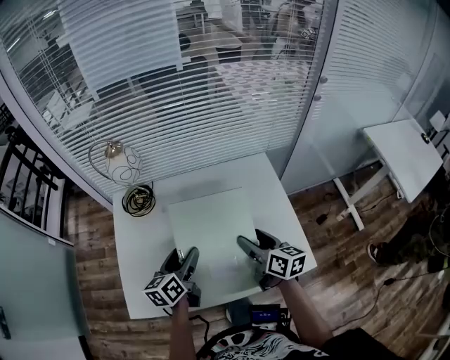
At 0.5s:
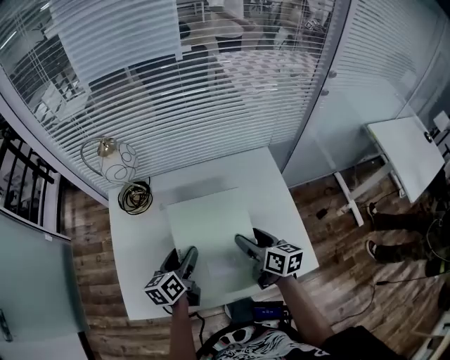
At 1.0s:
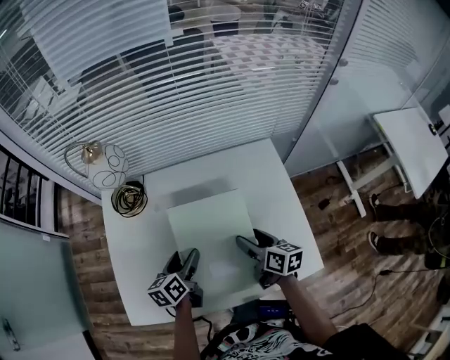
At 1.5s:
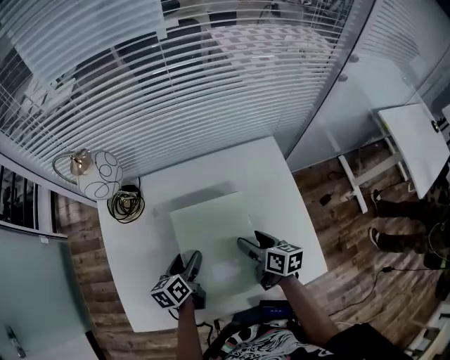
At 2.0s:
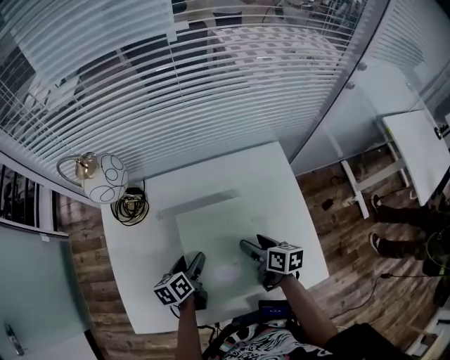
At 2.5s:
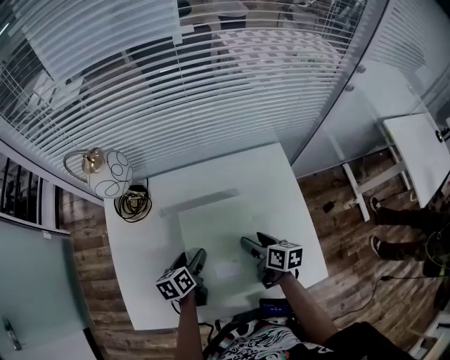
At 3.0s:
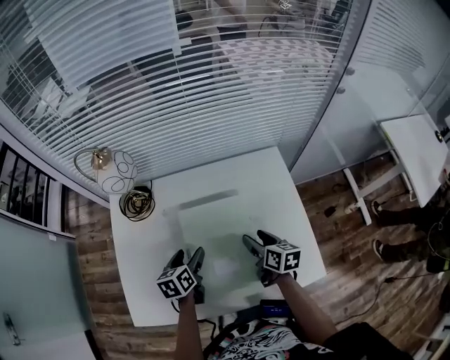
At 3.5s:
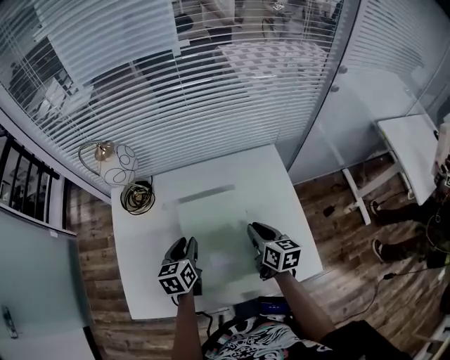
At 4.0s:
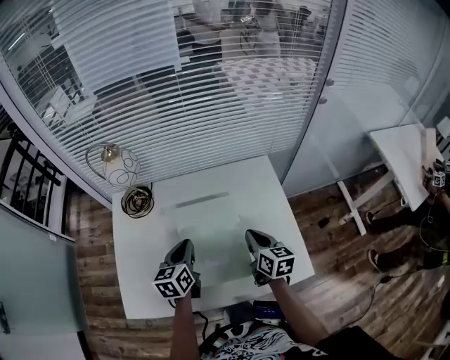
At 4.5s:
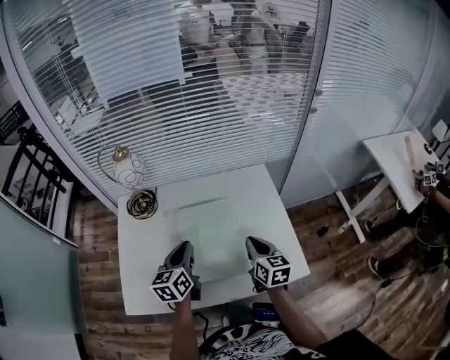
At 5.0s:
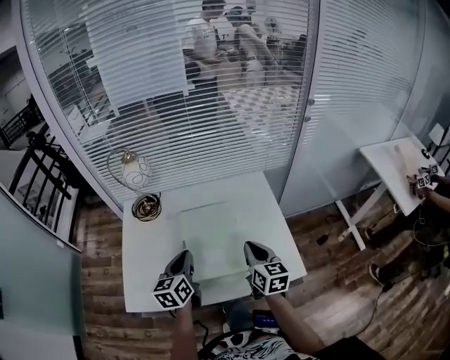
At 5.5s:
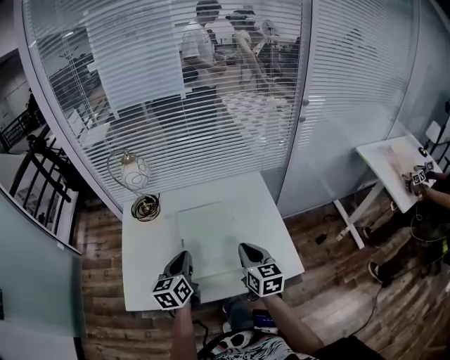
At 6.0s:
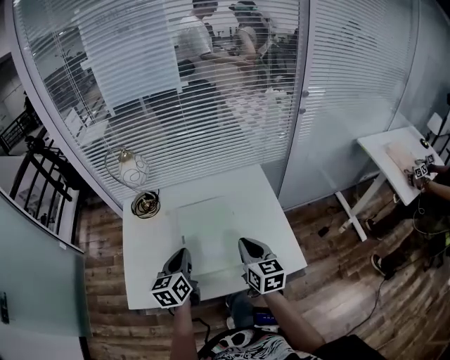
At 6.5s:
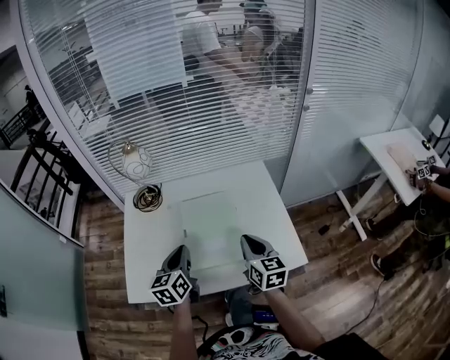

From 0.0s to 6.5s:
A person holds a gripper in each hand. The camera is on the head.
From 0.0s to 2.0s: The left gripper is displaced downward by roughly 15 cm, and turns by approximately 20 degrees. The right gripper shifts some 15 cm downward and forward, and rotates about 20 degrees.
From 2.0s to 4.5s: The left gripper goes approximately 15 cm upward, swivels approximately 30 degrees, and closes its fingers. Meanwhile the right gripper is displaced upward and backward by approximately 15 cm, turns by about 30 degrees, and closes its fingers.
From 4.5s to 6.5s: The two grippers go roughly 5 cm backward.

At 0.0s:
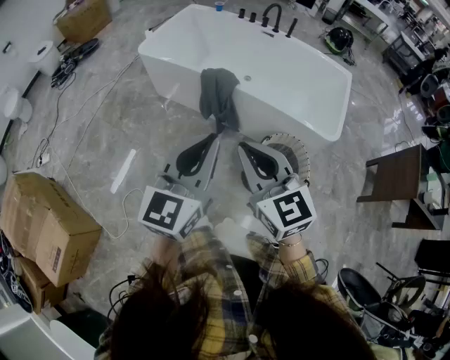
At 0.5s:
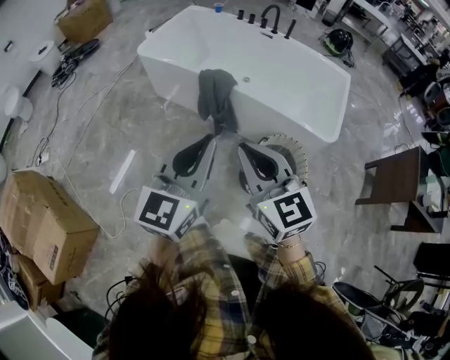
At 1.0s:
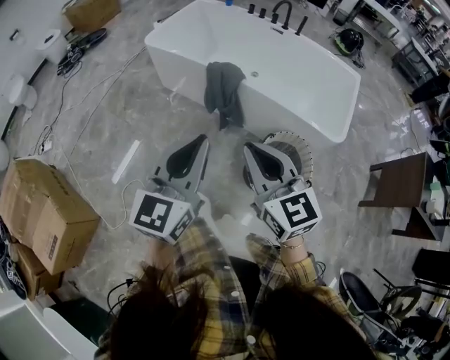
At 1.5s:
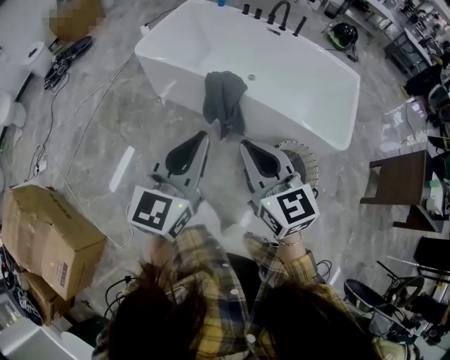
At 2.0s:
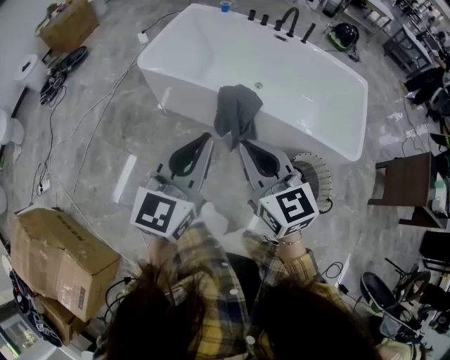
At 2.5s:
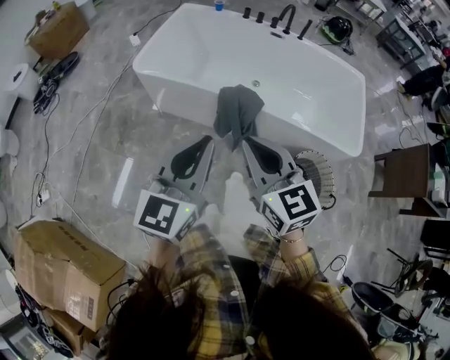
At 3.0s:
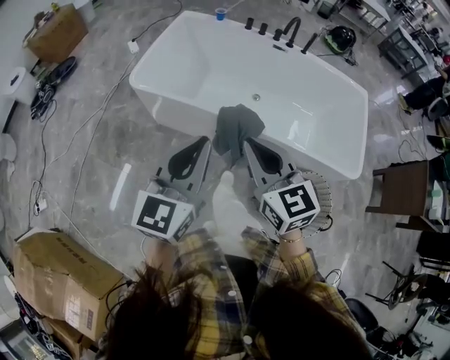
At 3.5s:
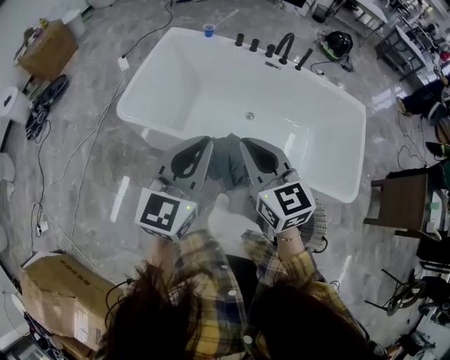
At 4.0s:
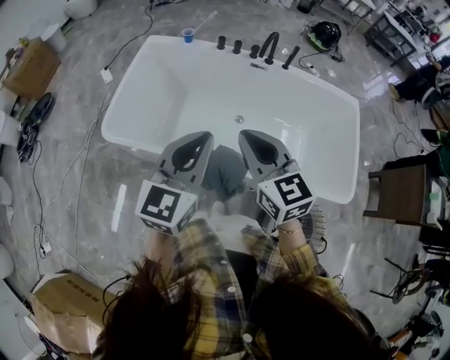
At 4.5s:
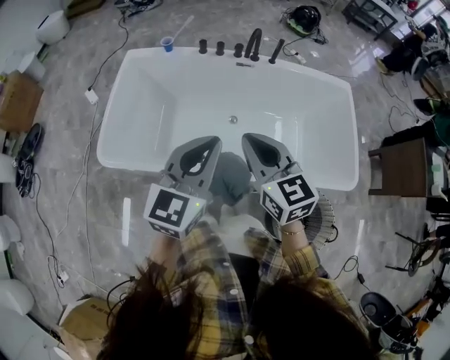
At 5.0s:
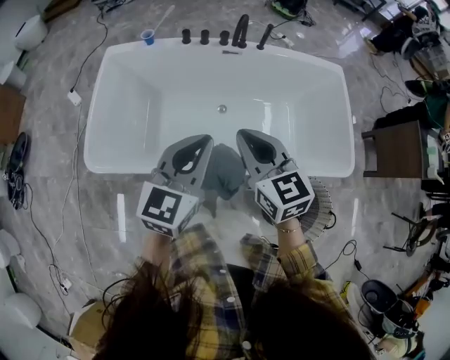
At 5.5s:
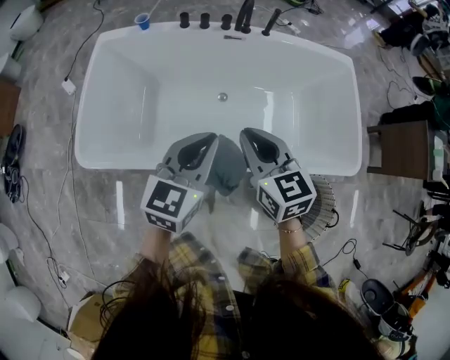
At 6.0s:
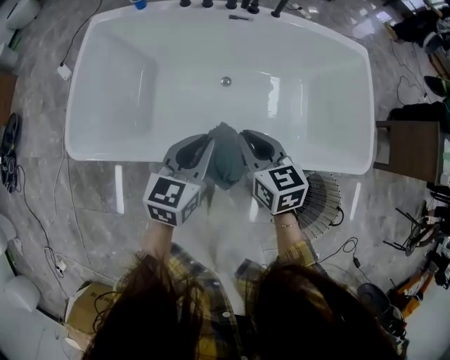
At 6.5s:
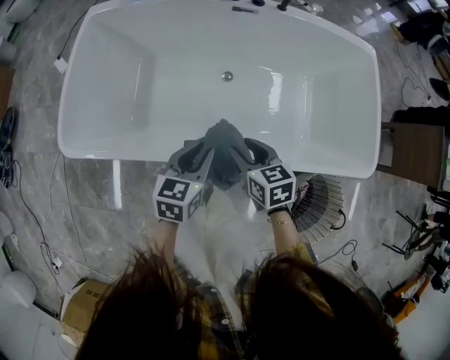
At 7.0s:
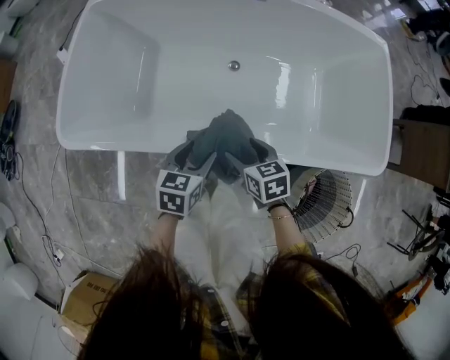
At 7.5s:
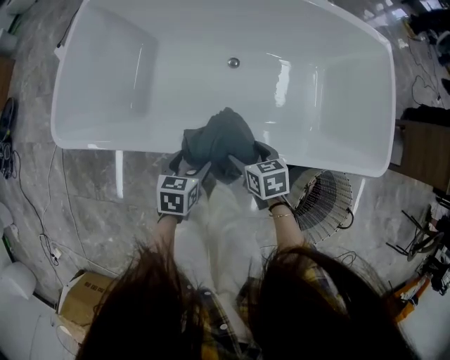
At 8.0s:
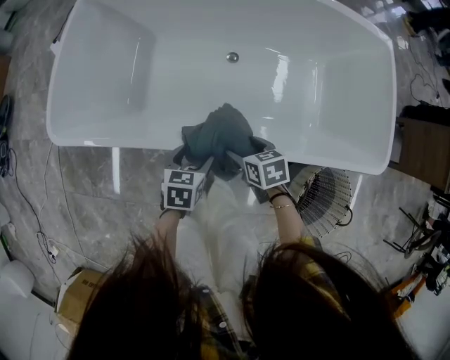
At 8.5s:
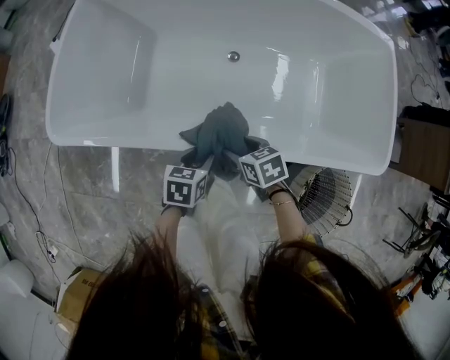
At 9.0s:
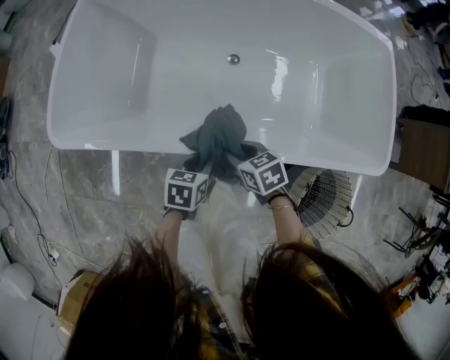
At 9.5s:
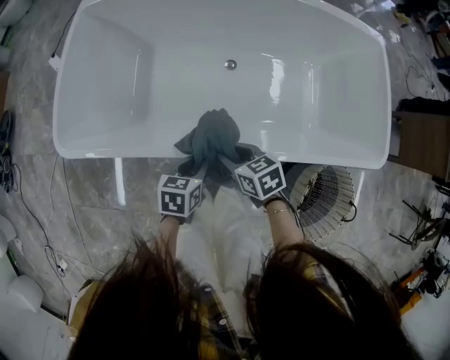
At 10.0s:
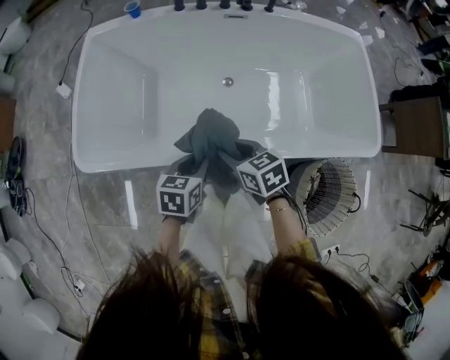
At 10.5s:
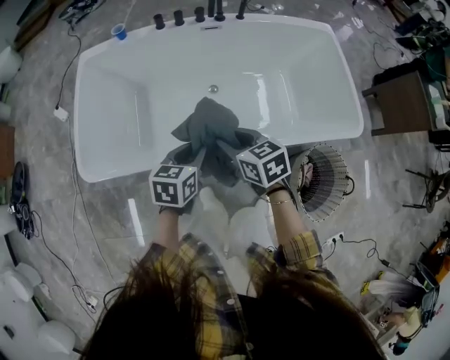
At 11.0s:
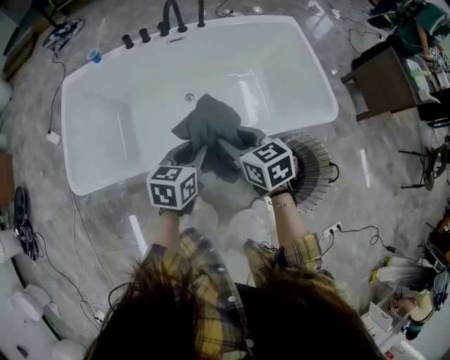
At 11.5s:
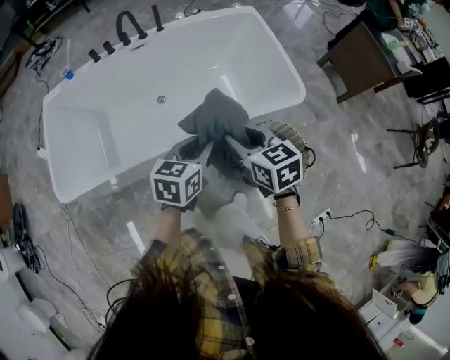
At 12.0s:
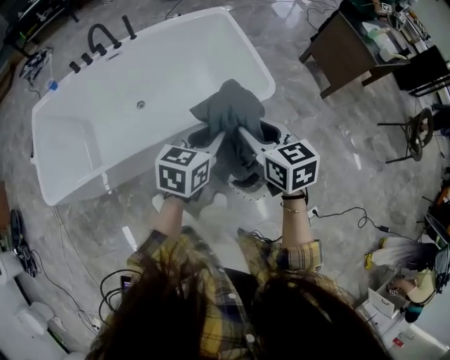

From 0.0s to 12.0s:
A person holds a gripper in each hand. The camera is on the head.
From 0.0s to 2.0s: The grippers both shift forward and to the left by about 25 cm.
From 2.0s to 4.0s: Both grippers move forward, some 40 cm.
From 4.0s to 6.0s: The right gripper shifts about 25 cm downward, and turns by some 30 degrees. Meanwhile the left gripper travels downward and forward by about 25 cm, and swivels roughly 30 degrees.
From 6.0s to 8.0s: The two grippers go approximately 25 cm downward. The left gripper rotates some 30 degrees, and opens up, while the right gripper swivels some 30 degrees, and opens.
From 8.0s to 10.0s: The right gripper goes approximately 20 cm upward and to the left, and closes up. The left gripper travels upward by about 15 cm, and closes.
From 10.0s to 12.0s: The pair of grippers is taken approximately 50 cm. The right gripper rotates roughly 40 degrees. The left gripper changes its angle by roughly 30 degrees.

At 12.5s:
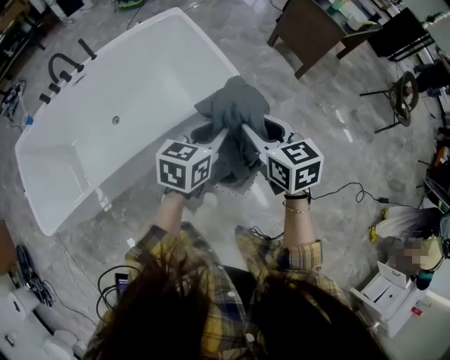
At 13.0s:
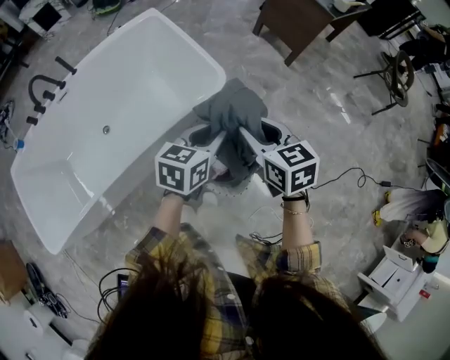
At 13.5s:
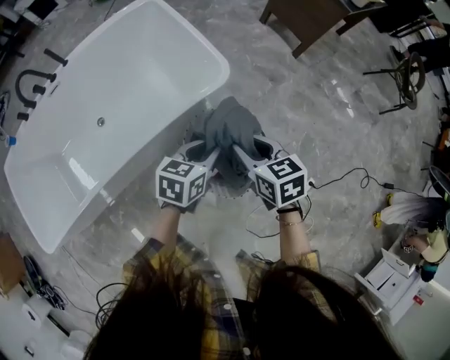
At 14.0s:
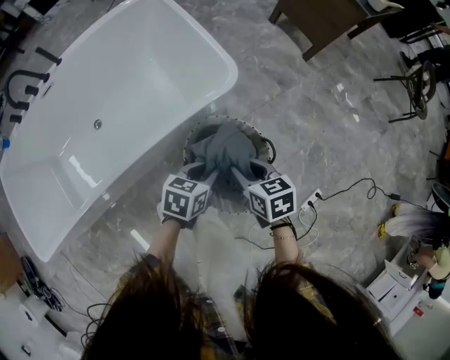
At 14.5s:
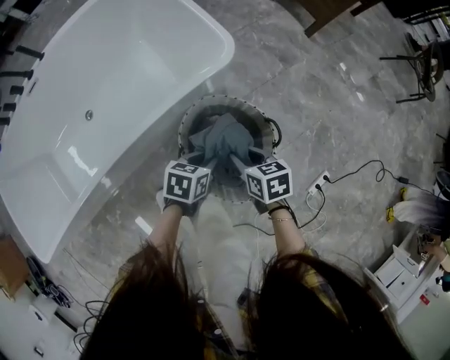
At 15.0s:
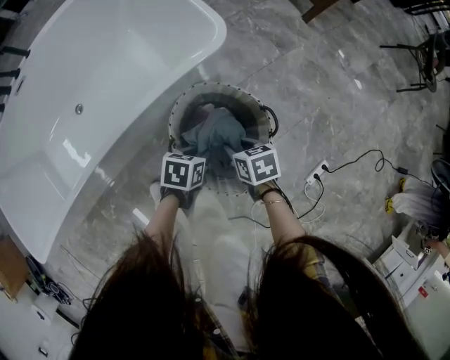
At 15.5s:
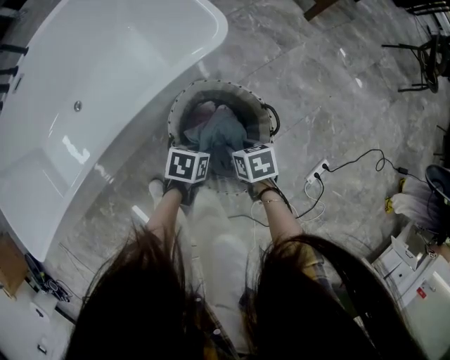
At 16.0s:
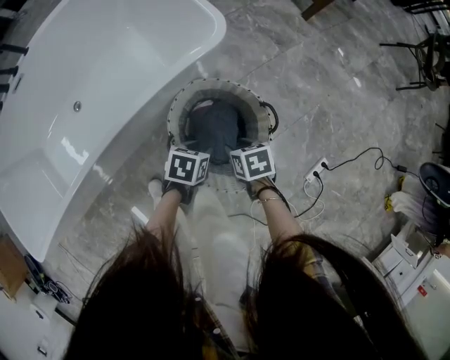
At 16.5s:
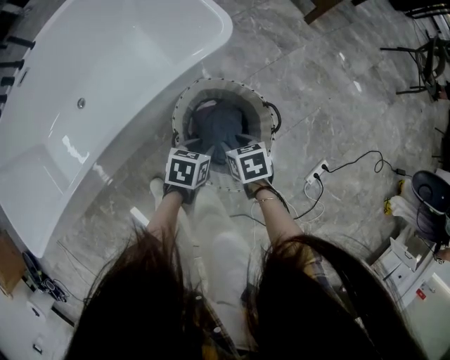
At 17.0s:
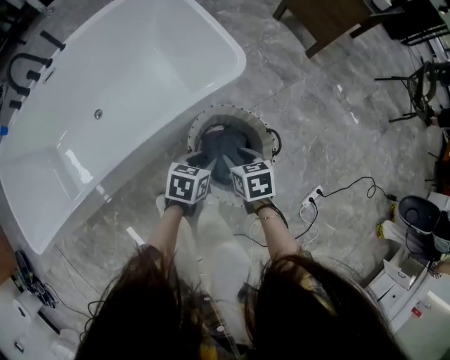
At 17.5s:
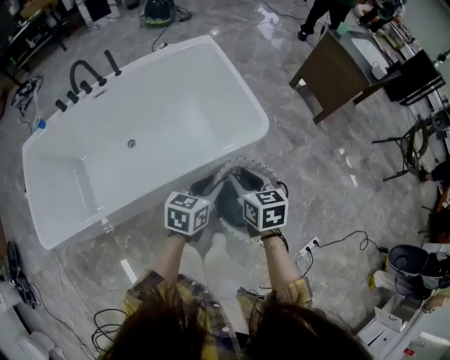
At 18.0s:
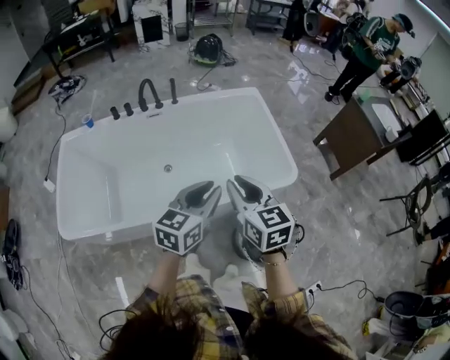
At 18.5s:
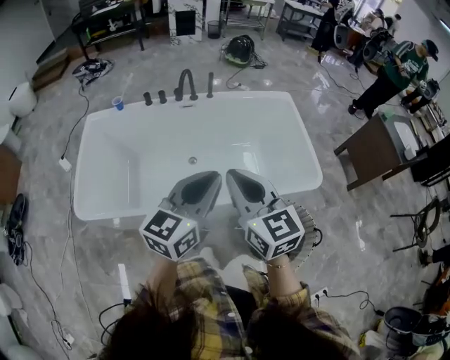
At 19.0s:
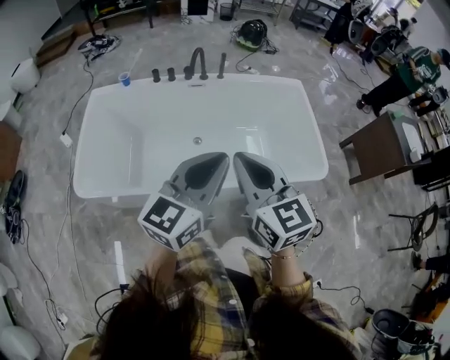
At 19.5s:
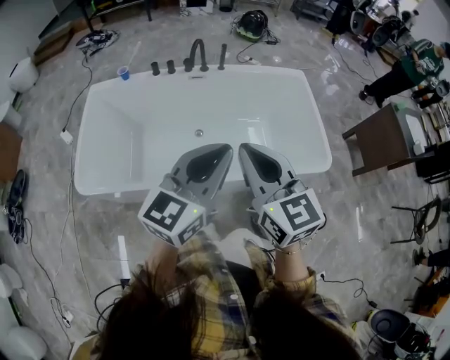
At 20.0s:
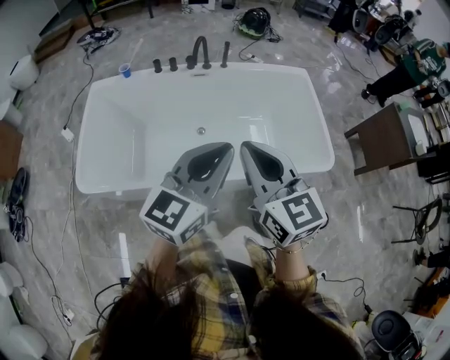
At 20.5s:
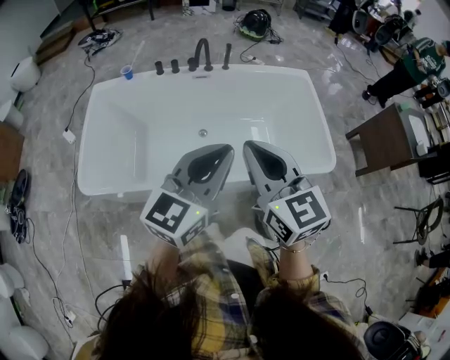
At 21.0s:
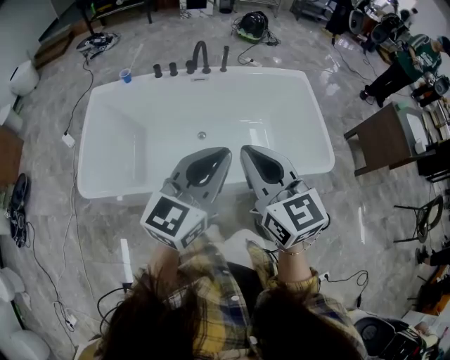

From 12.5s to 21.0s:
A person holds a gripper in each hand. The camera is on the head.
From 12.5s to 14.5s: The grippers both shift downward by about 35 cm. The left gripper swivels about 30 degrees, while the right gripper rotates some 30 degrees.
From 14.5s to 16.5s: The right gripper heads downward, covering some 5 cm.
From 16.5s to 19.0s: Both grippers are carried about 40 cm. Both grippers move upward, roughly 60 cm. The left gripper tilts its fingers about 60 degrees upward. The right gripper tilts its fingers some 50 degrees upward, and closes its fingers.
From 19.0s to 21.0s: The grippers stay close to where they were, moving slightly.
